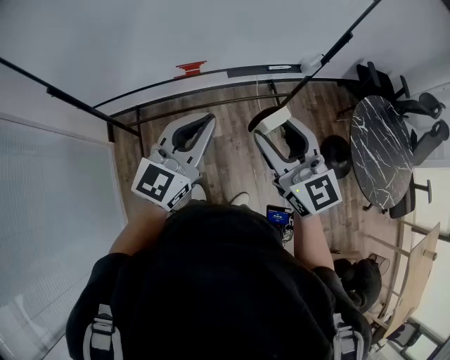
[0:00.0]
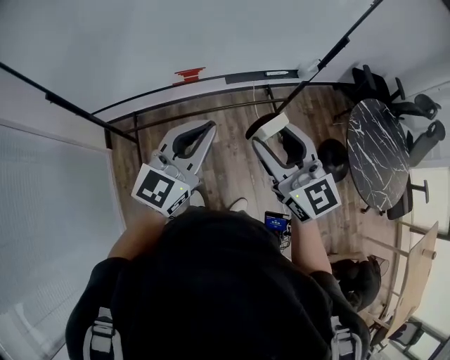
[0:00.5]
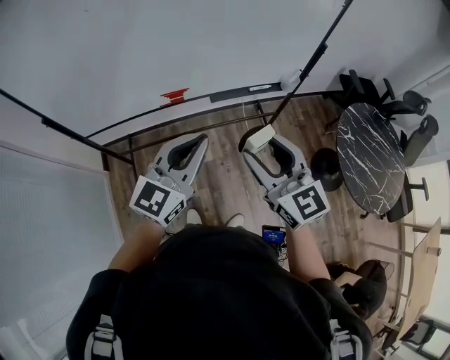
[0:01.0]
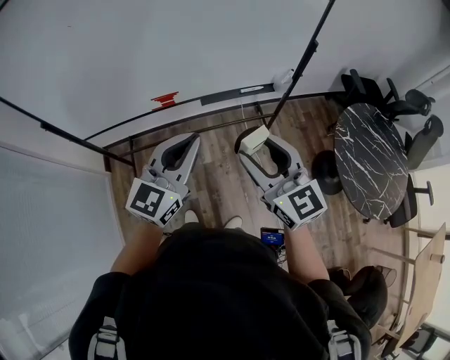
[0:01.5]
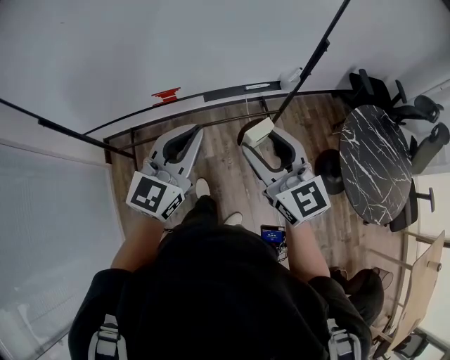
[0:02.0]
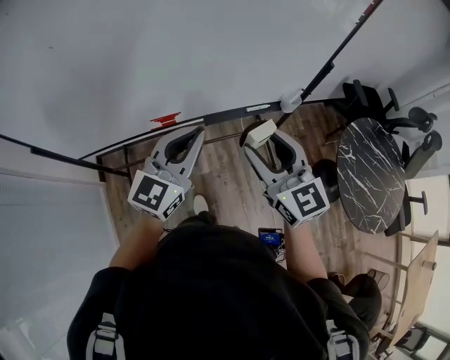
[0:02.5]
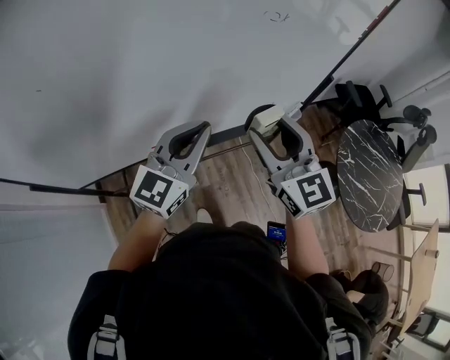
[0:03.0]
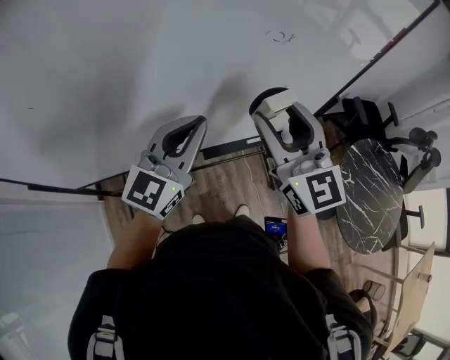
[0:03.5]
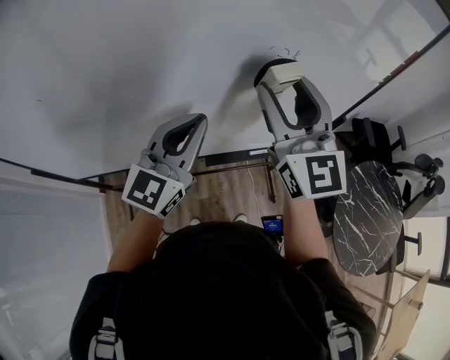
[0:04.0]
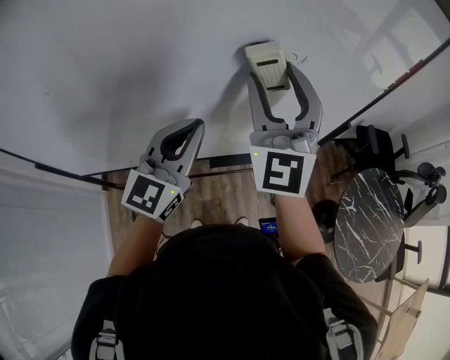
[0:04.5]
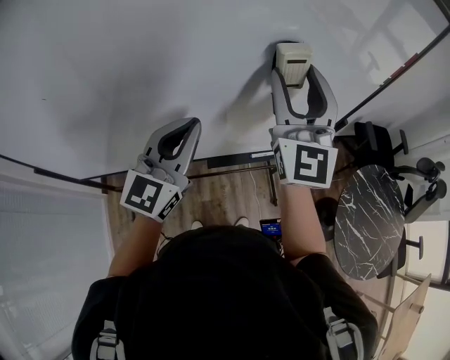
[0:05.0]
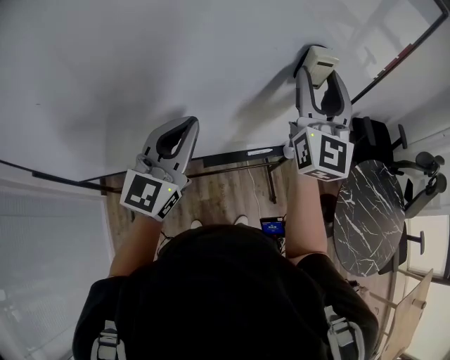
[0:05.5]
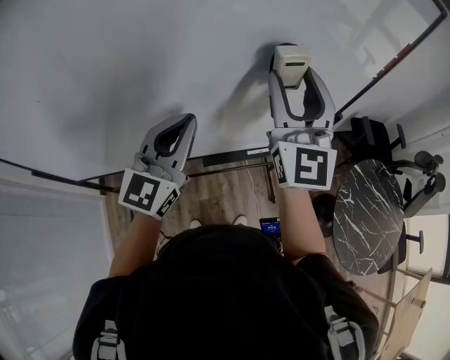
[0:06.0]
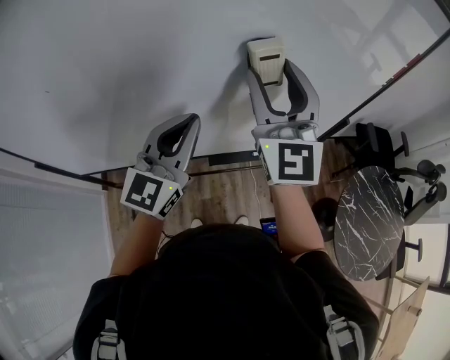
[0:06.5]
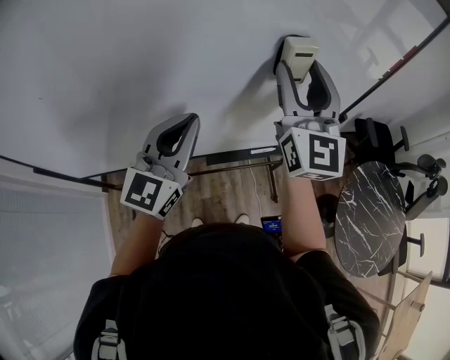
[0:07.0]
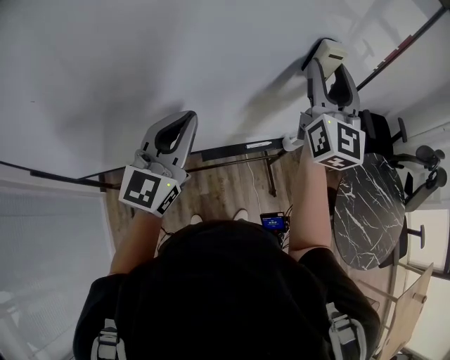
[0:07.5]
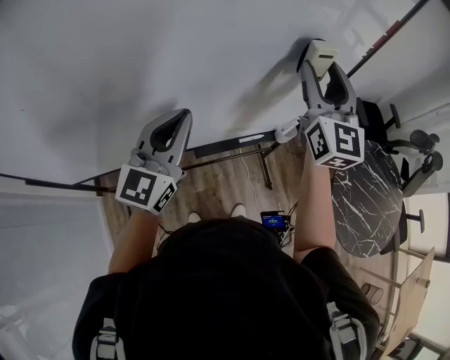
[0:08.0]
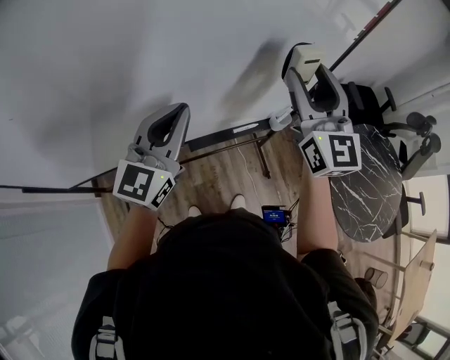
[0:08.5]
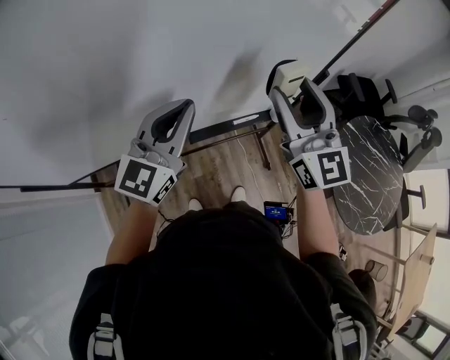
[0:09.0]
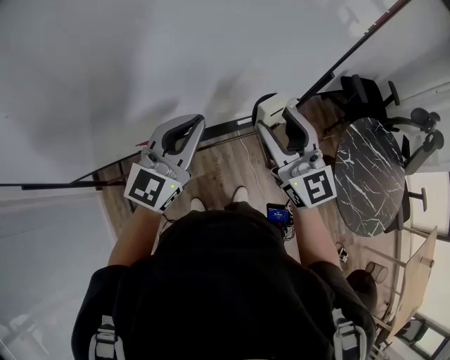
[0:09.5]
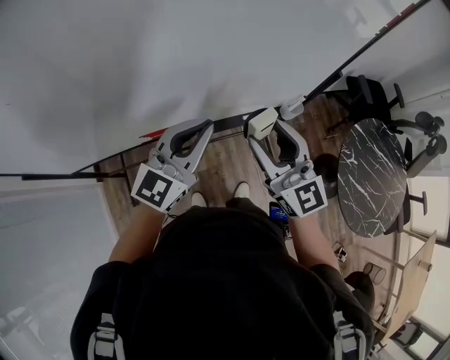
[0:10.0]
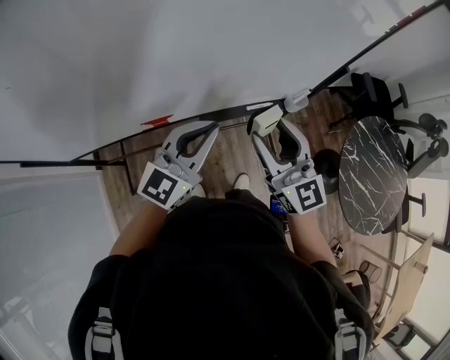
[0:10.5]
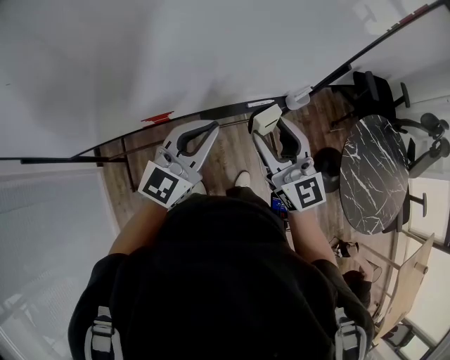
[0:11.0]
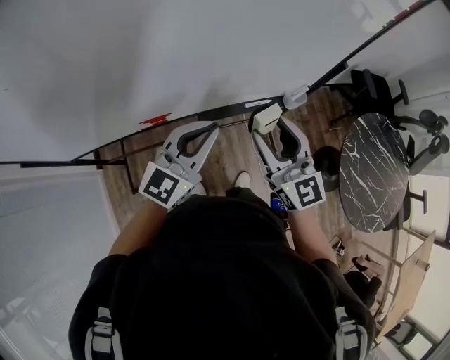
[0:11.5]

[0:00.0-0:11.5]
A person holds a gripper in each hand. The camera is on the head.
0:00.0 to 0:02.0: The two grippers go about 10 cm to the right and forward.
0:02.0 to 0:04.0: The right gripper shifts some 35 cm forward and upward, and turns by about 20 degrees; the left gripper is displaced forward by about 25 cm.
0:04.0 to 0:06.0: The right gripper moves some 10 cm to the right and comes back.
0:06.0 to 0:07.5: The right gripper is displaced to the right and forward by some 10 cm.
0:07.5 to 0:09.5: The left gripper goes approximately 5 cm downward; the right gripper shifts some 20 cm backward and downward, and changes its angle by roughly 20 degrees.
0:09.5 to 0:11.5: Both grippers travel together downward, about 5 cm.

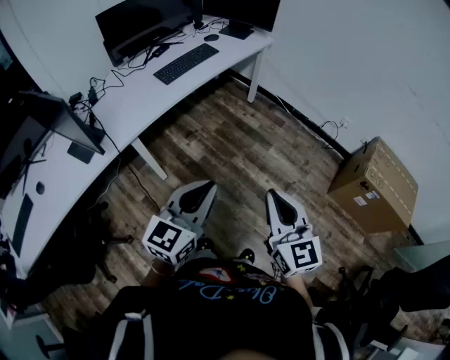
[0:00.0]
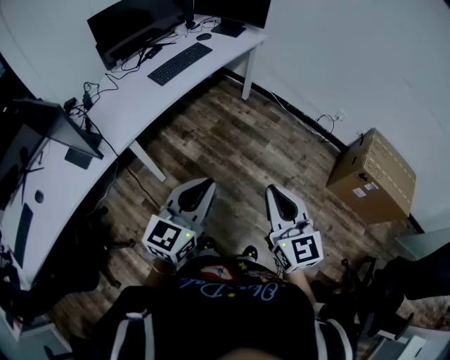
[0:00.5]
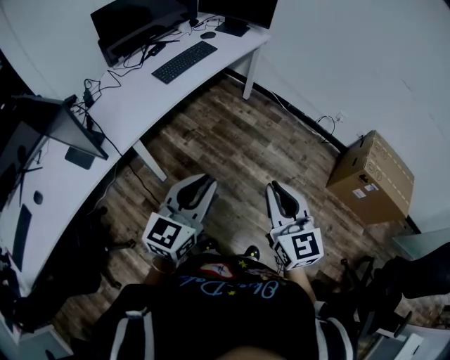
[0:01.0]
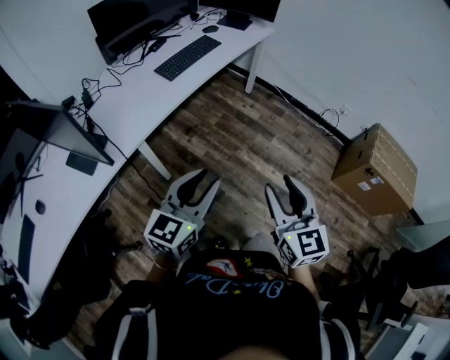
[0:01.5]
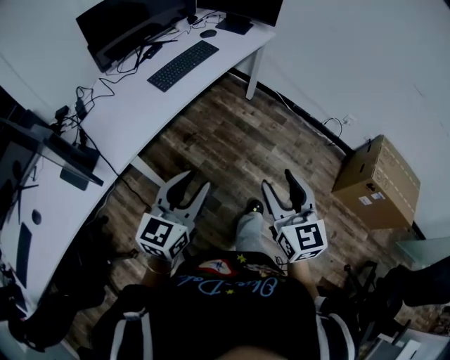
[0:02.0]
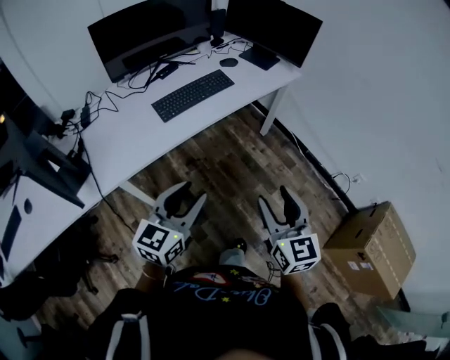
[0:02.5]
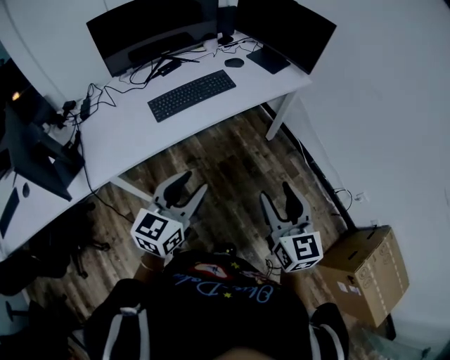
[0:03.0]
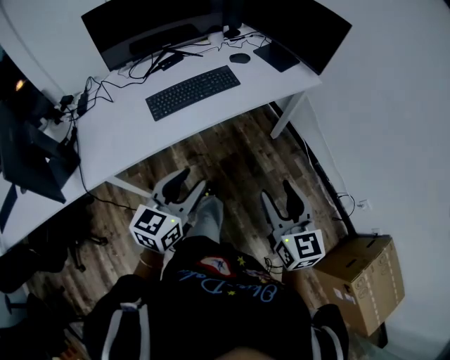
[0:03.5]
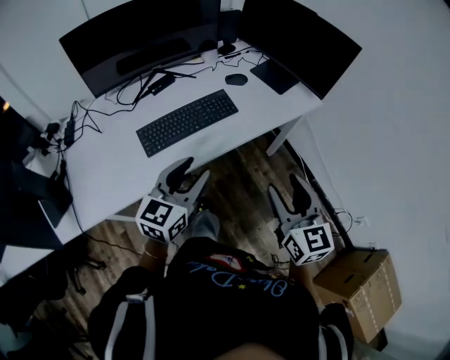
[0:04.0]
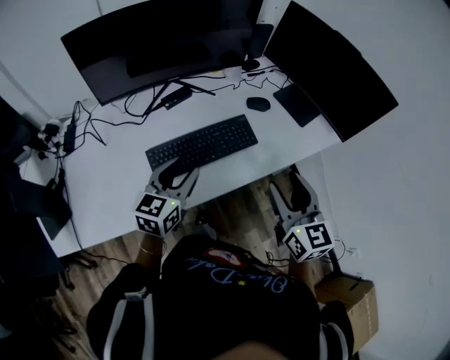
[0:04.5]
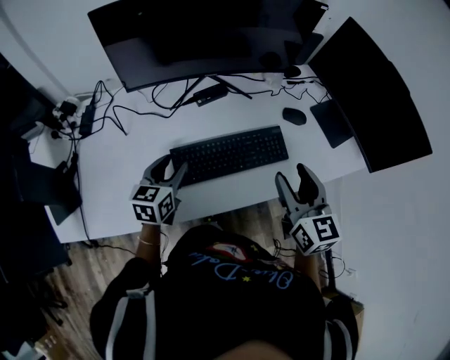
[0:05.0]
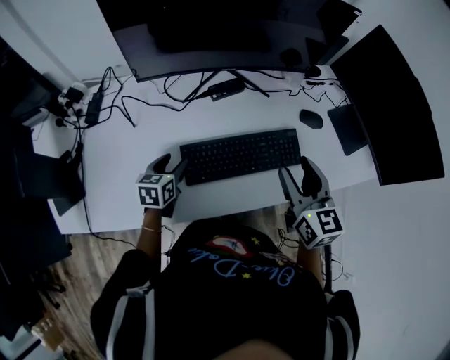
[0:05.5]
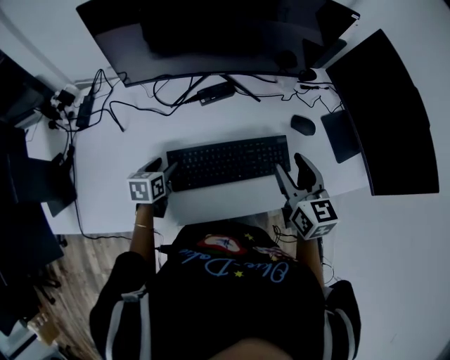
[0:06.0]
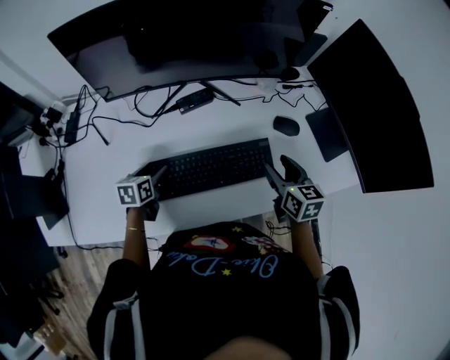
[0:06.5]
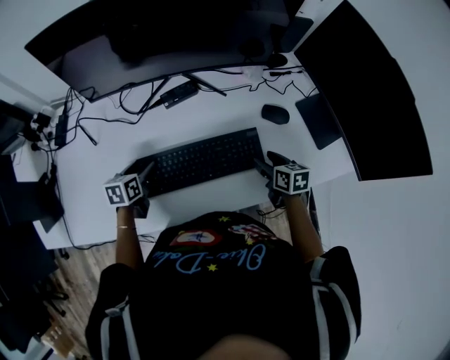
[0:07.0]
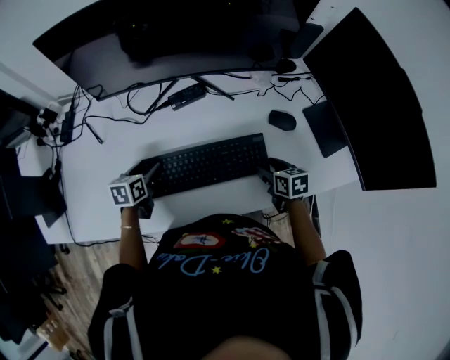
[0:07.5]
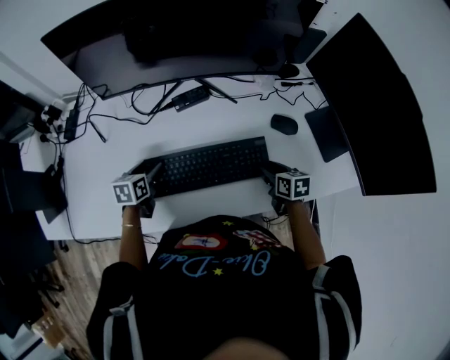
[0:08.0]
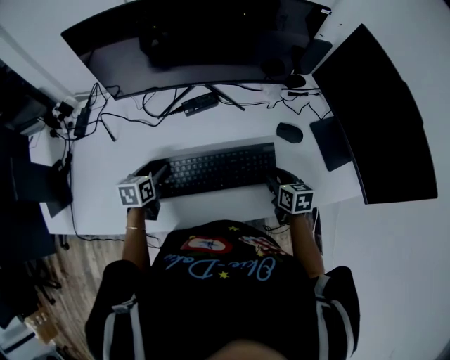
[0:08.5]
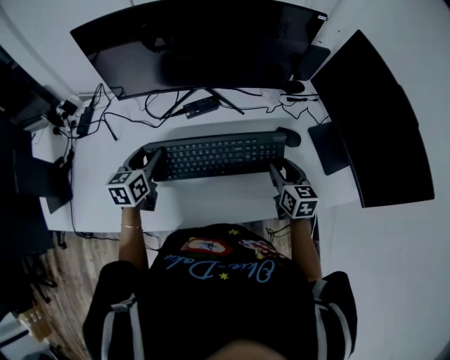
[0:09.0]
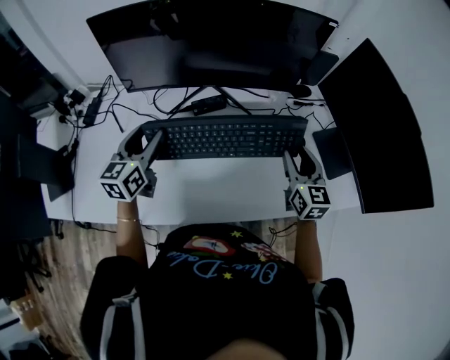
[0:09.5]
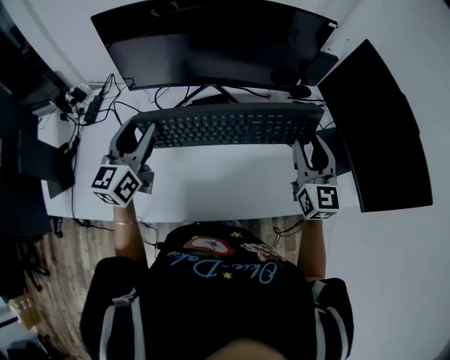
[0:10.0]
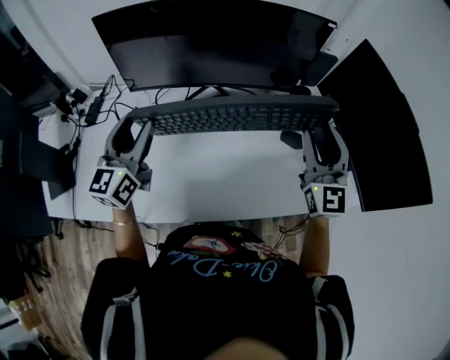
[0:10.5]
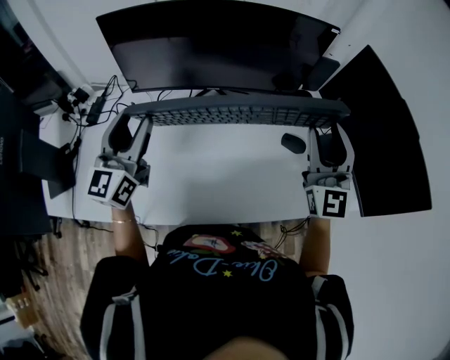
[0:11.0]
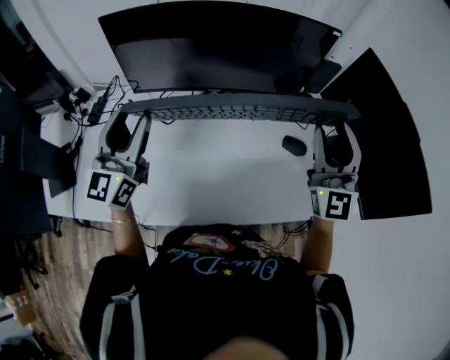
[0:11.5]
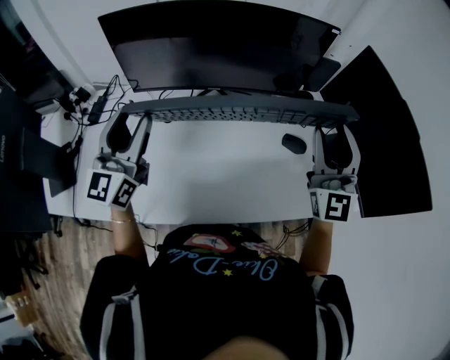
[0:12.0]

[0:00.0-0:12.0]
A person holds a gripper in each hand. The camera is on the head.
0:00.0 to 0:02.0: The grippers both shift forward and to the left by approximately 15 cm. The left gripper opens up, while the right gripper opens.
0:02.0 to 0:04.0: Both grippers are carried forward, about 50 cm.
0:04.0 to 0:06.0: The right gripper shifts about 35 cm forward, and rotates roughly 20 degrees, while the left gripper is displaced to the left, downward and forward by approximately 40 cm, and angles its fingers downward, by roughly 30 degrees.
0:06.0 to 0:08.0: The right gripper is displaced downward and to the right by roughly 20 cm, and rotates roughly 30 degrees.
0:08.0 to 0:10.0: The two grippers go approximately 30 cm upward. The right gripper tips its fingers upward by approximately 40 degrees. The left gripper angles its fingers upward, by some 40 degrees.
0:10.0 to 0:12.0: The right gripper goes approximately 10 cm upward, and changes its angle by some 30 degrees, while the left gripper moves upward, some 5 cm.

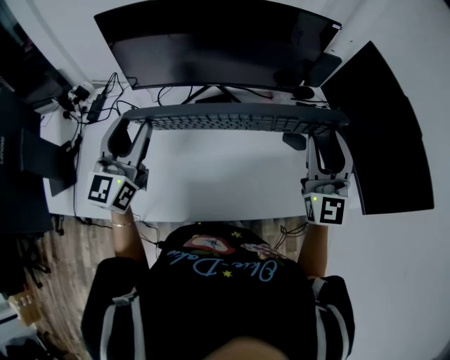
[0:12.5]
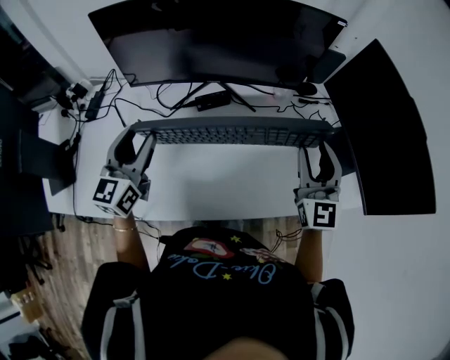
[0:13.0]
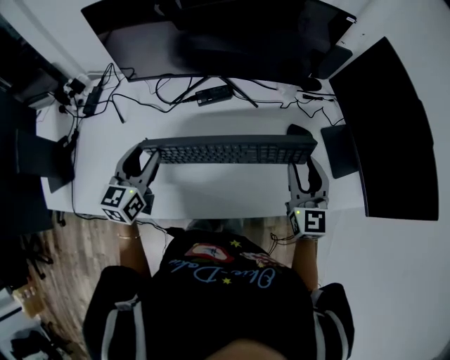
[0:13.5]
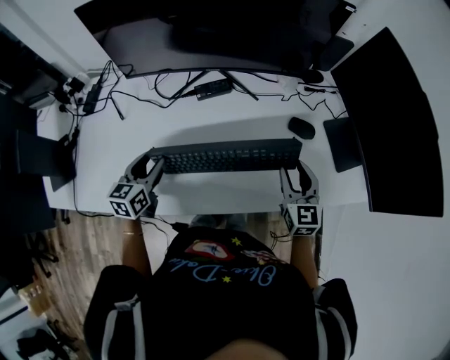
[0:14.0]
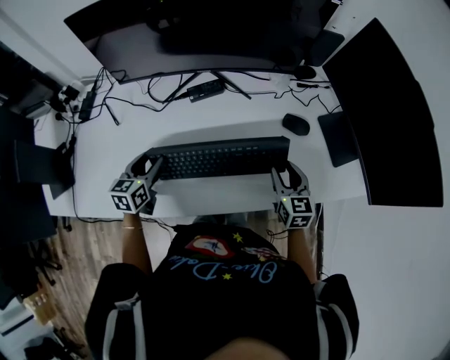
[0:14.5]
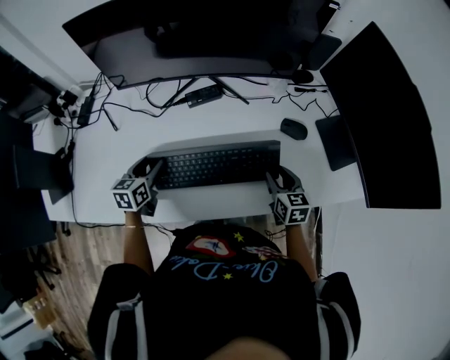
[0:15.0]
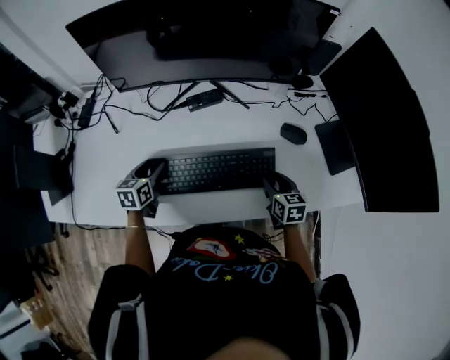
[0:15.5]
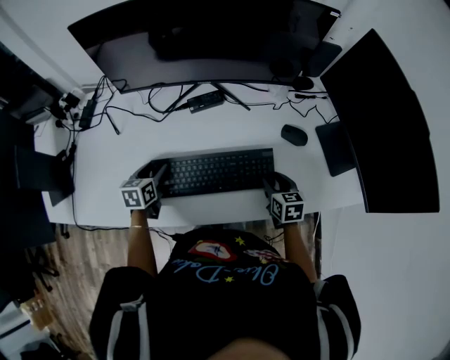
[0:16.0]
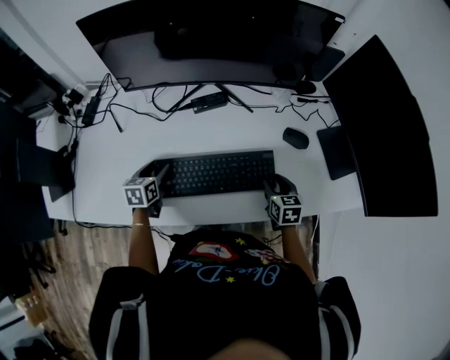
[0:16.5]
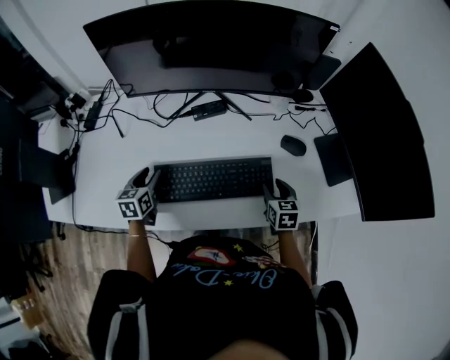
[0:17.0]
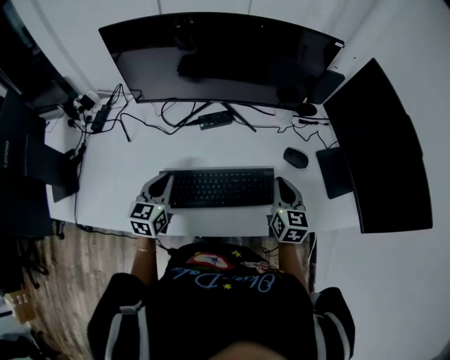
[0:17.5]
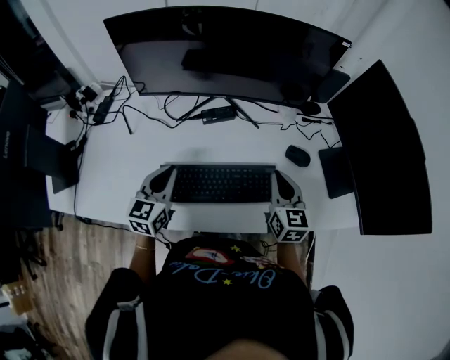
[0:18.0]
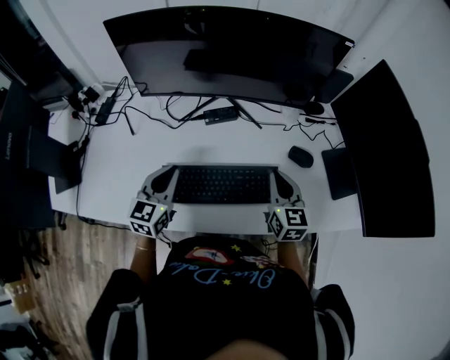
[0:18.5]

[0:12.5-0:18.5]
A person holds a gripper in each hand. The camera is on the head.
0:12.5 to 0:14.5: The two grippers go some 25 cm downward. The left gripper tilts its fingers roughly 40 degrees downward; the right gripper points its fingers some 40 degrees further downward.
0:14.5 to 0:16.5: Both grippers travel together downward, approximately 5 cm.
0:16.5 to 0:18.5: The two grippers go roughly 15 cm upward. The left gripper rotates about 30 degrees, and closes its fingers; the right gripper rotates approximately 20 degrees, and closes its fingers.
